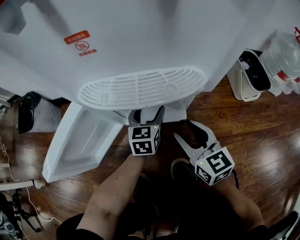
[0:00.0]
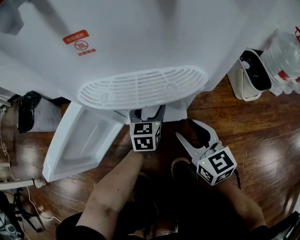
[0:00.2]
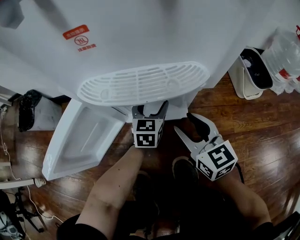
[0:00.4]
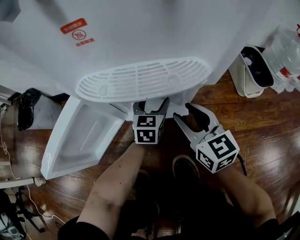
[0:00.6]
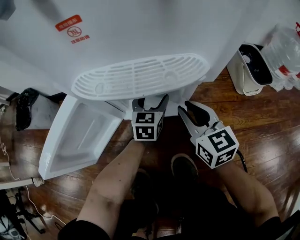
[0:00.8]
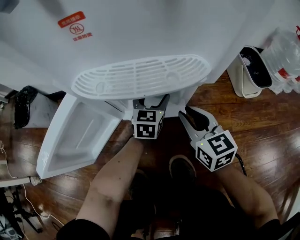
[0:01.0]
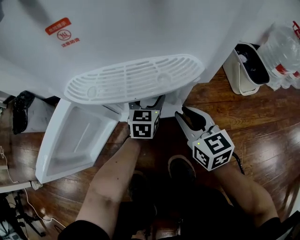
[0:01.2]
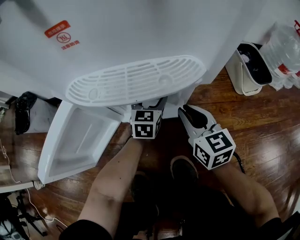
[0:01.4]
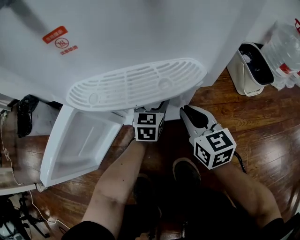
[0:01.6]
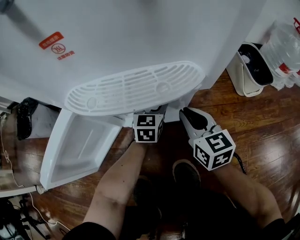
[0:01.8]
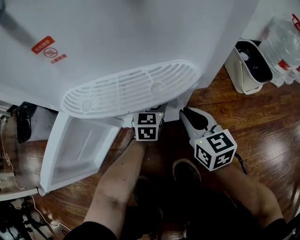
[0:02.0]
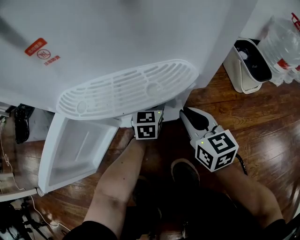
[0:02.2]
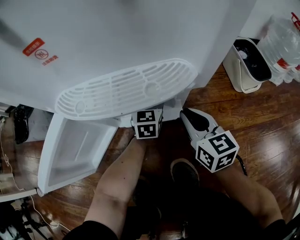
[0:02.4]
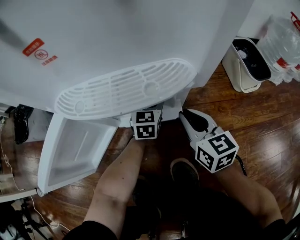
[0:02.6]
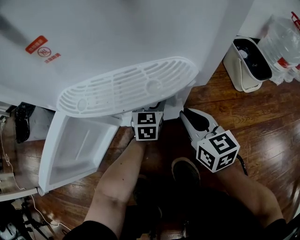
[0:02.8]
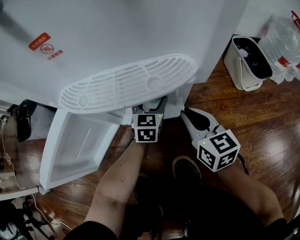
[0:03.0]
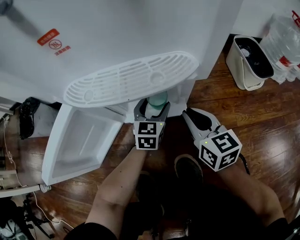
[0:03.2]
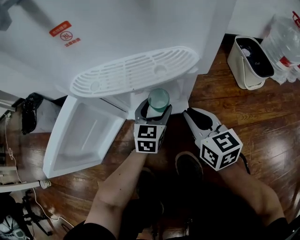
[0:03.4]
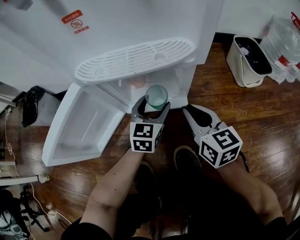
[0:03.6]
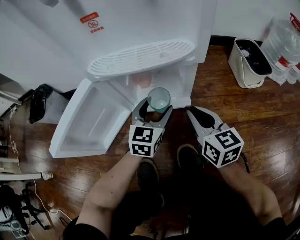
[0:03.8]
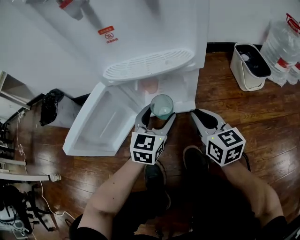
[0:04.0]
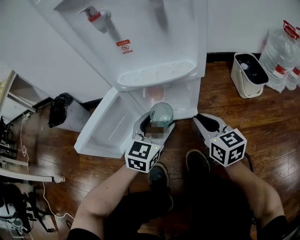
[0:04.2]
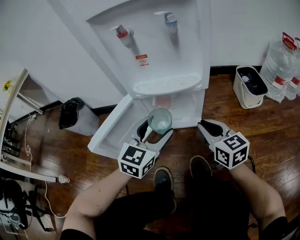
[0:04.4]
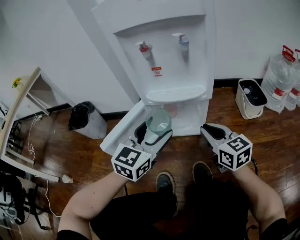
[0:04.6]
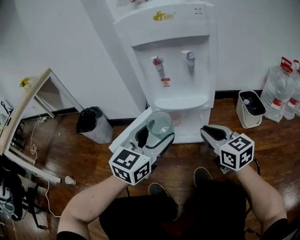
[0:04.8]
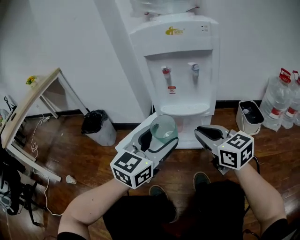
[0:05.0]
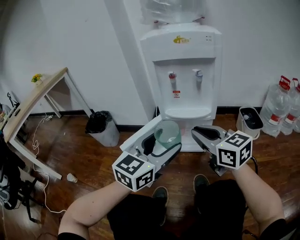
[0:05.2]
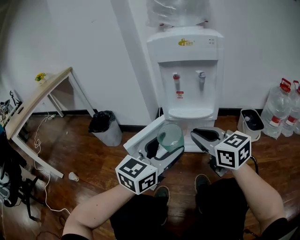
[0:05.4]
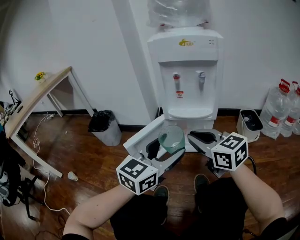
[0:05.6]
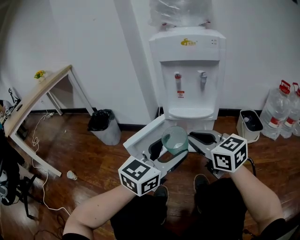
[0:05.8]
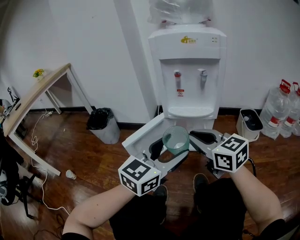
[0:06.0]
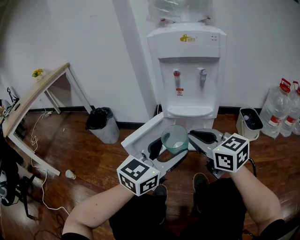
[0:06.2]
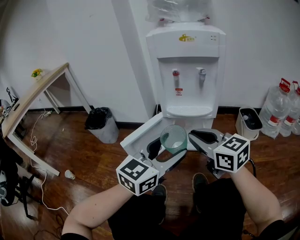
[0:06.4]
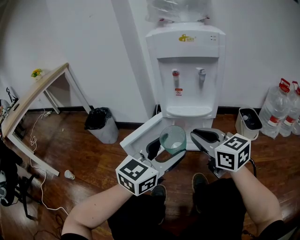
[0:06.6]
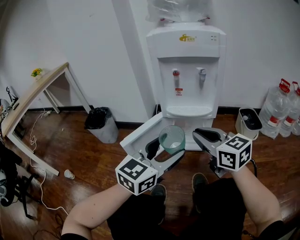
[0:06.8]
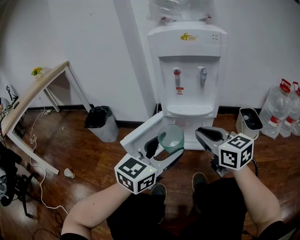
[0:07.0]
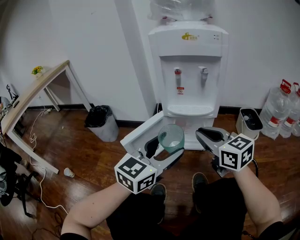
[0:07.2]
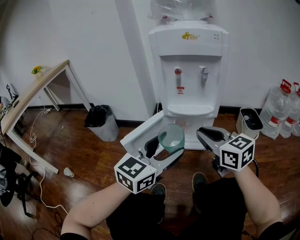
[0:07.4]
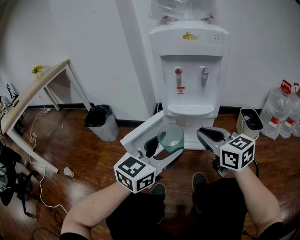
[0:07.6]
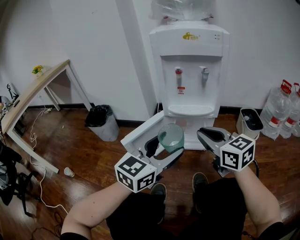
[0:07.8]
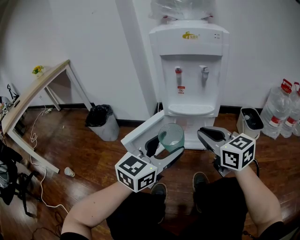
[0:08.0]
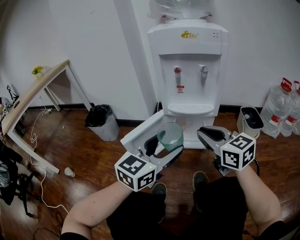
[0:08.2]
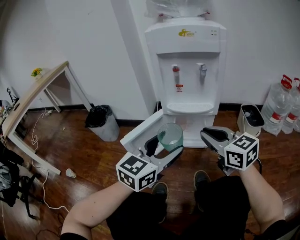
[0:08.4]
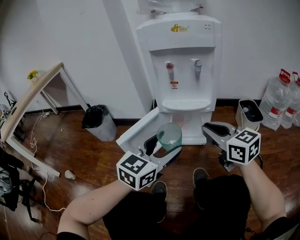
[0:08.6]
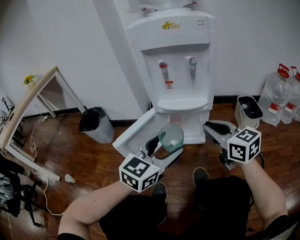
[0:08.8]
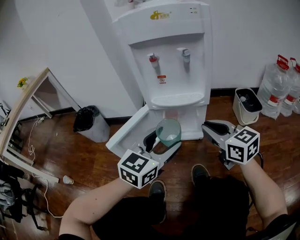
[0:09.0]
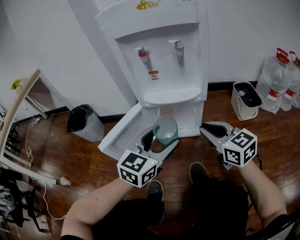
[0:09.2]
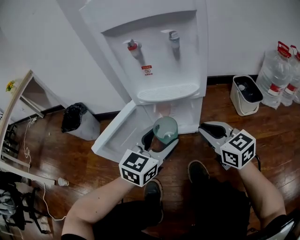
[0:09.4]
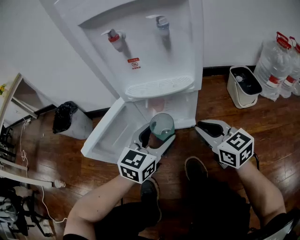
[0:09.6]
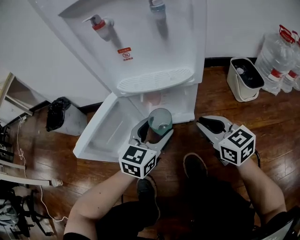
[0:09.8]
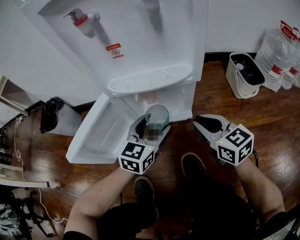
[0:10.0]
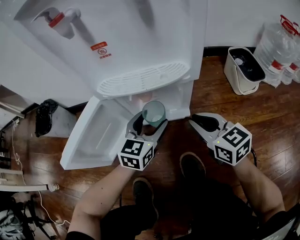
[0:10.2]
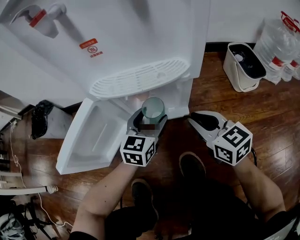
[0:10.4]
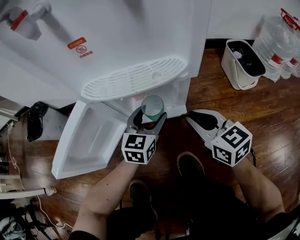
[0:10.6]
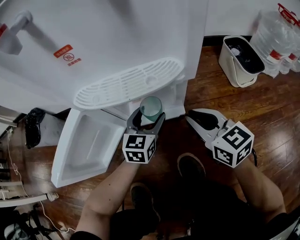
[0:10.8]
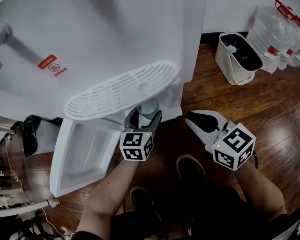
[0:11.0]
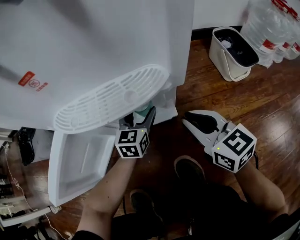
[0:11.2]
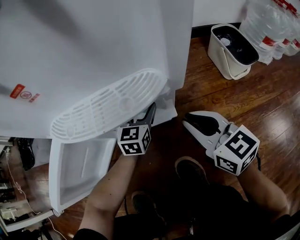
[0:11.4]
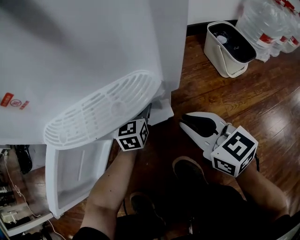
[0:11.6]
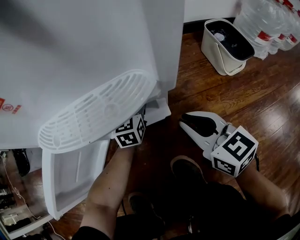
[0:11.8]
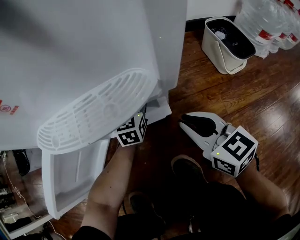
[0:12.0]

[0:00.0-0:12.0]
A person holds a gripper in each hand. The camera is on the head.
0.0 to 1.6 s: The left gripper changes place by approximately 5 cm, while the right gripper moves forward, some 5 cm, and closes its fingers.
1.6 to 3.0 s: The grippers make only small movements.
3.0 to 4.4 s: The left gripper travels upward and backward by some 35 cm. The right gripper goes roughly 15 cm upward and backward.
4.4 to 6.0 s: The left gripper shifts about 25 cm upward and backward, while the right gripper heads upward, to the left and backward, covering approximately 30 cm, and turns by roughly 20 degrees.
6.0 to 7.6 s: There are only small adjustments of the grippers.
7.6 to 9.0 s: The left gripper is displaced downward and forward by some 10 cm. Meanwhile the right gripper shifts roughly 10 cm downward and to the right.
9.0 to 10.4 s: Both grippers move downward and forward, some 30 cm.
10.4 to 12.0 s: The left gripper travels forward and downward by some 20 cm. Meanwhile the right gripper moves roughly 5 cm.

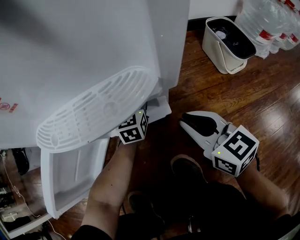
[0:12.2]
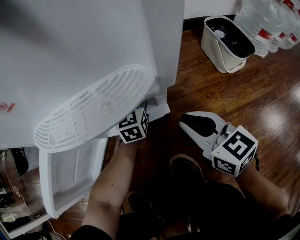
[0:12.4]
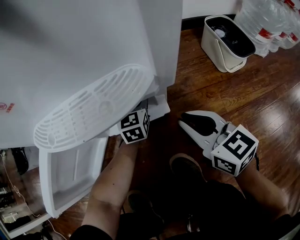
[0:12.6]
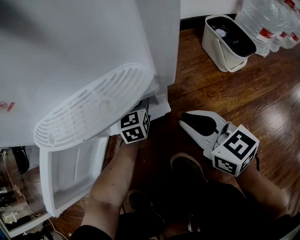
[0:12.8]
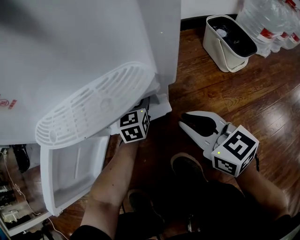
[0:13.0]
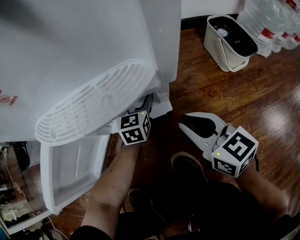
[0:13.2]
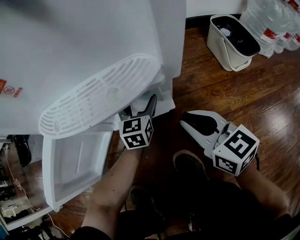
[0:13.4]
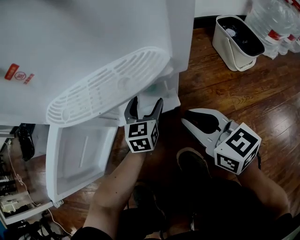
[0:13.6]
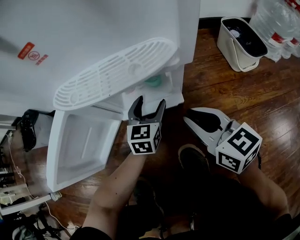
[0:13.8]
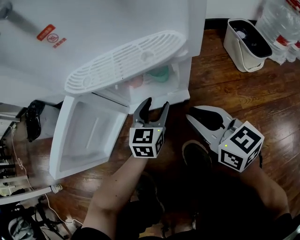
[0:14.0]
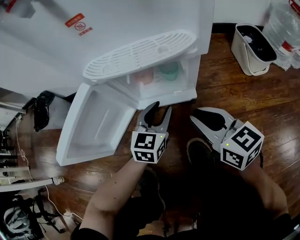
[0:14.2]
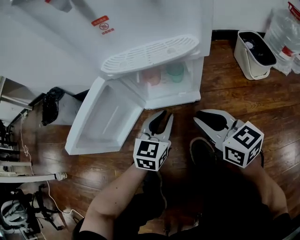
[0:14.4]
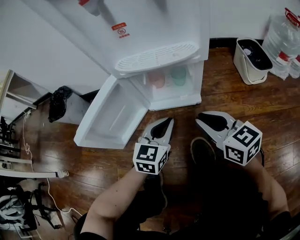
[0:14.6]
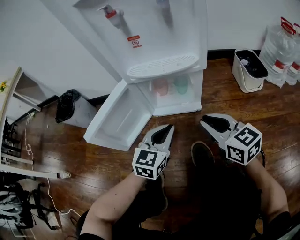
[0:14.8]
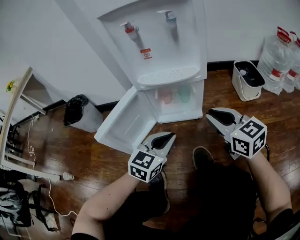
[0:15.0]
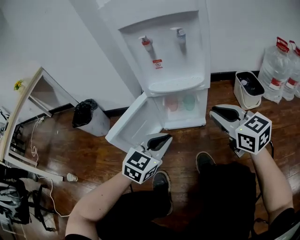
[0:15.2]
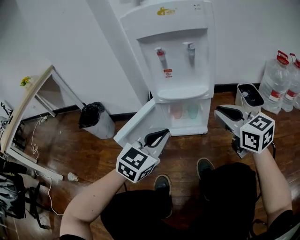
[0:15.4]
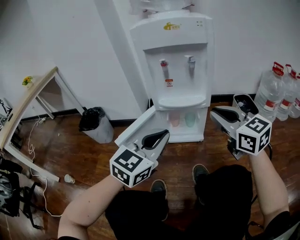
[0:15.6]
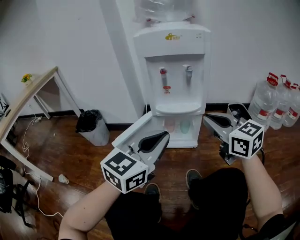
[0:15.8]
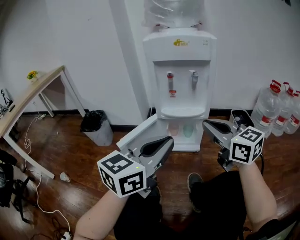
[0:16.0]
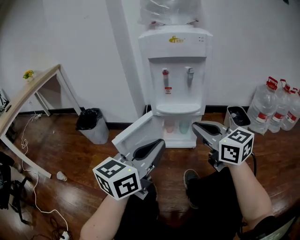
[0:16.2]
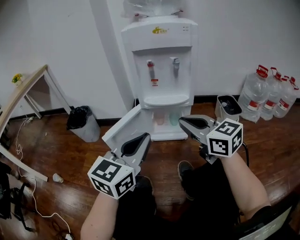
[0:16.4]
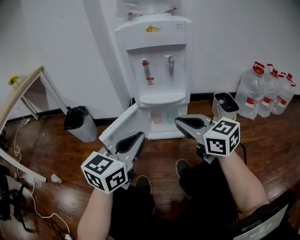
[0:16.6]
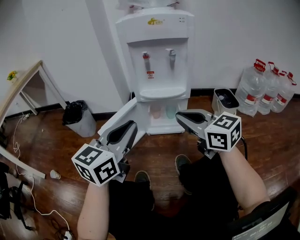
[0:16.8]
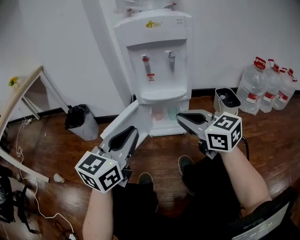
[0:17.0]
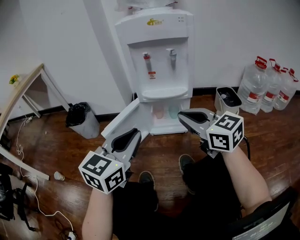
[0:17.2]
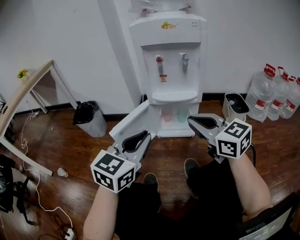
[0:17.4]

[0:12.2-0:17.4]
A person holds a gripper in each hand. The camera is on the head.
12.2 to 14.0 s: The left gripper goes approximately 15 cm backward. Meanwhile the right gripper ends up roughly 5 cm from where it was.
14.0 to 15.6 s: The left gripper travels upward and backward by about 50 cm, turns by roughly 20 degrees, and closes up. The right gripper moves upward, about 35 cm, and changes its angle by about 20 degrees.
15.6 to 17.4 s: The left gripper moves roughly 10 cm upward and comes back. Meanwhile the right gripper heads to the left and backward, covering approximately 5 cm.

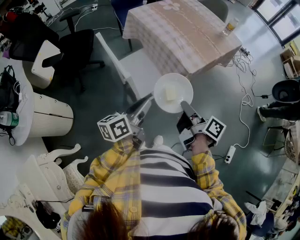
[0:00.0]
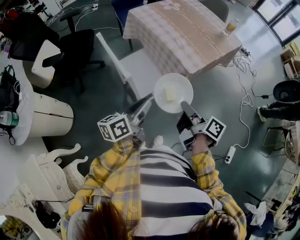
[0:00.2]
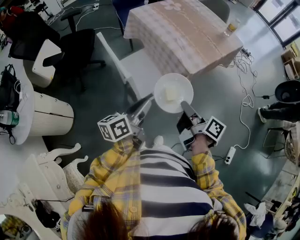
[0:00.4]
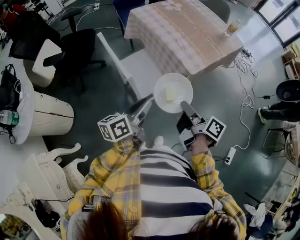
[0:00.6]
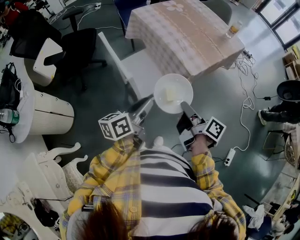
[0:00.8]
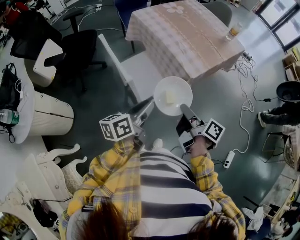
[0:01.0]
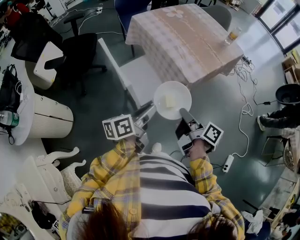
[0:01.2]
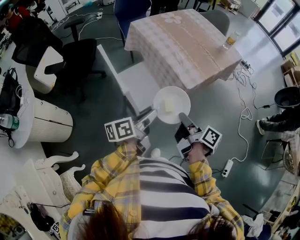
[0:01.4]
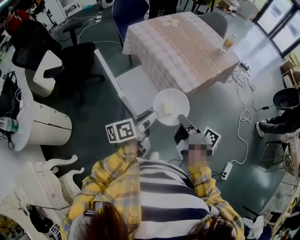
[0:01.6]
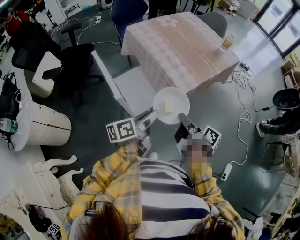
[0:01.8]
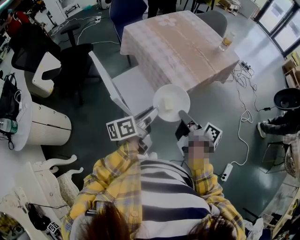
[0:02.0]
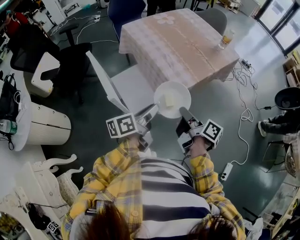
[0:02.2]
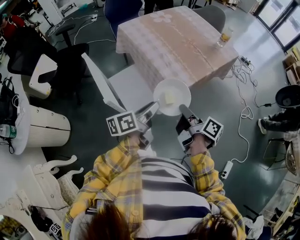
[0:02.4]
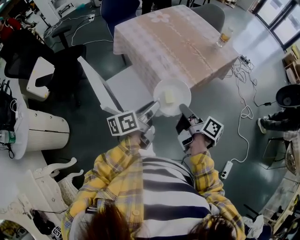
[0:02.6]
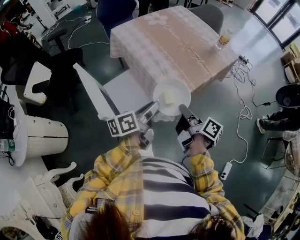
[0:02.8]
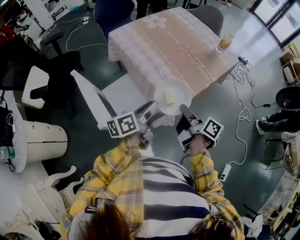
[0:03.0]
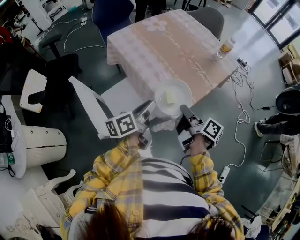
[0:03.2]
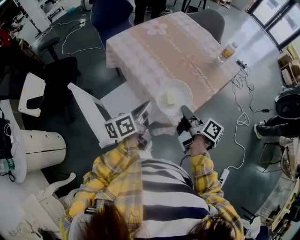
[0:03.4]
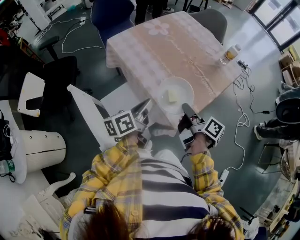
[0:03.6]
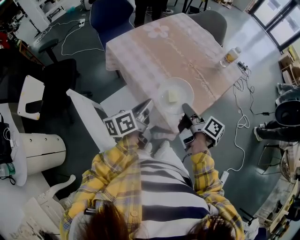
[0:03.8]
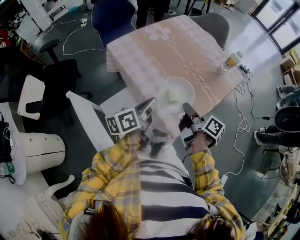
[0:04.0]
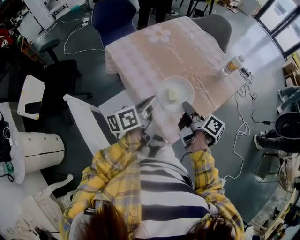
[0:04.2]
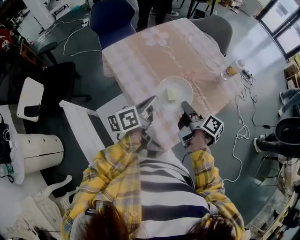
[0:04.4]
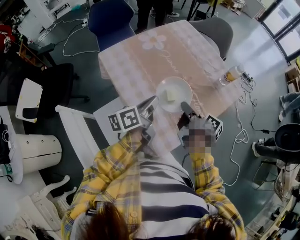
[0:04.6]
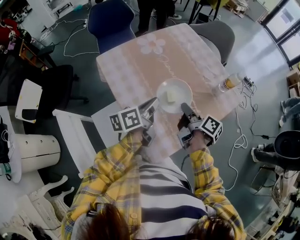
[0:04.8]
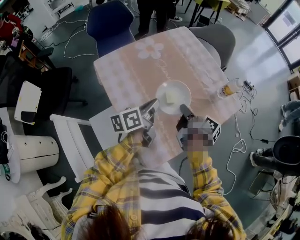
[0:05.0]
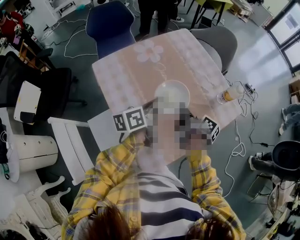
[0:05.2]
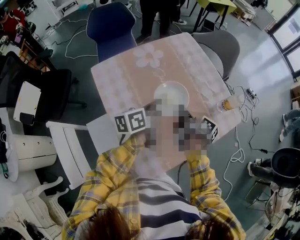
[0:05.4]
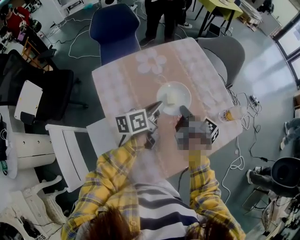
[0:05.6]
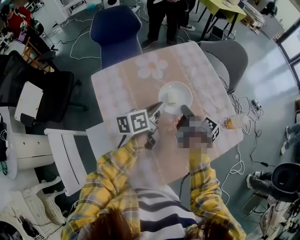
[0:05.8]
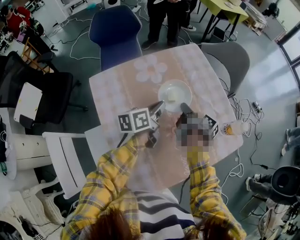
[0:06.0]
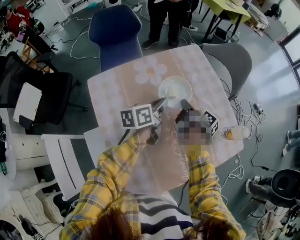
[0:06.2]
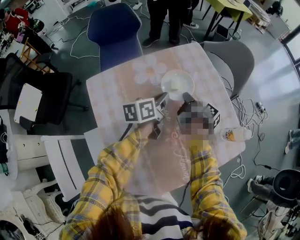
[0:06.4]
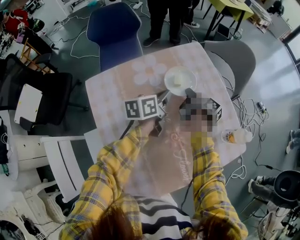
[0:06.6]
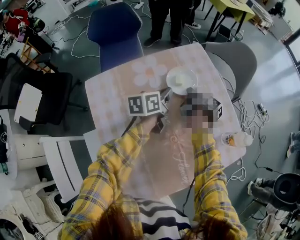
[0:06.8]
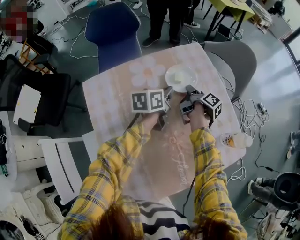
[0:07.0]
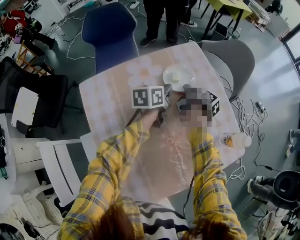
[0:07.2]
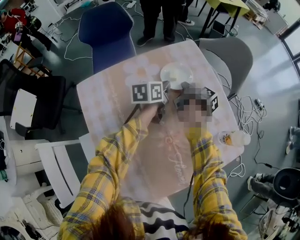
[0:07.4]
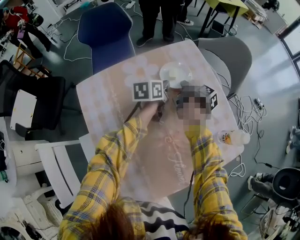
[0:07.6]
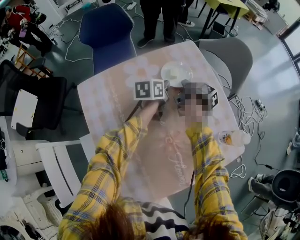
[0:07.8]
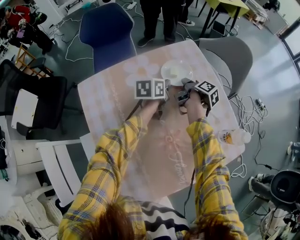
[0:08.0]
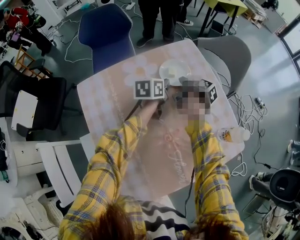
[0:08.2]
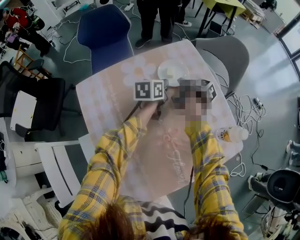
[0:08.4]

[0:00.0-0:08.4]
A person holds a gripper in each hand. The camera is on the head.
0.0 to 1.4 s: The left gripper shifts by some 5 cm.
1.4 to 2.8 s: The grippers both shift forward and to the right by roughly 15 cm.
2.8 to 4.2 s: The grippers both shift forward by about 20 cm. The left gripper closes.
4.2 to 5.6 s: The left gripper goes some 25 cm forward and to the right. The right gripper heads forward, covering roughly 25 cm.
5.6 to 7.0 s: Both grippers travel together forward, roughly 20 cm.
7.0 to 8.4 s: There are only small adjustments of the grippers.
